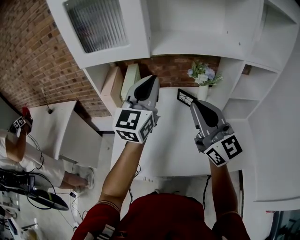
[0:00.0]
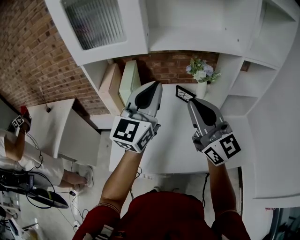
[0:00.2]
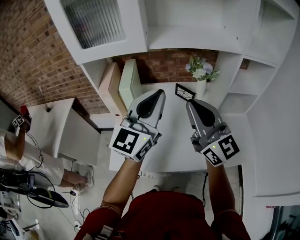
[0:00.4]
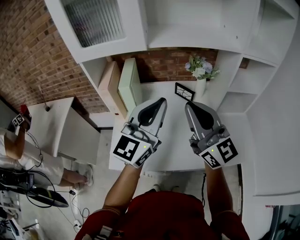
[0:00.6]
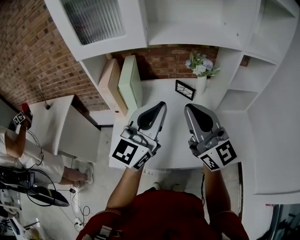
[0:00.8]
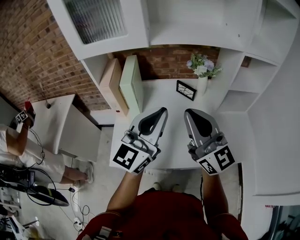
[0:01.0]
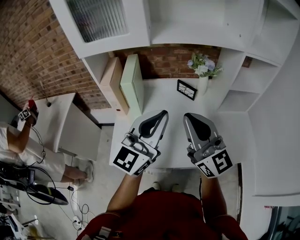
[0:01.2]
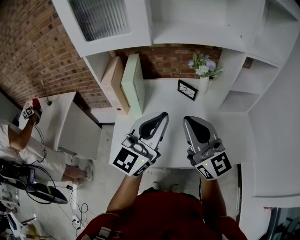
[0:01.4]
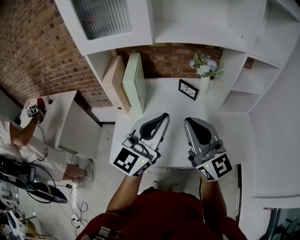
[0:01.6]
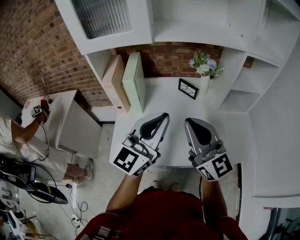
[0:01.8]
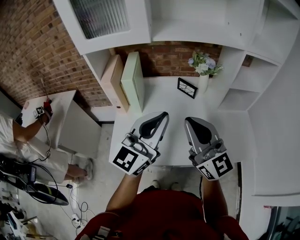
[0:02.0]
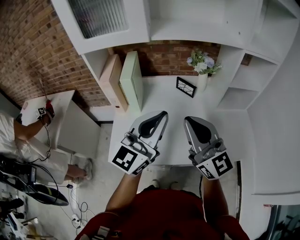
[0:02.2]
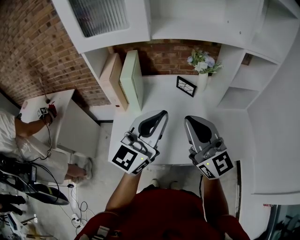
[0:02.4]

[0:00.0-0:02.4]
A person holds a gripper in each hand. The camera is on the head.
0:00.0 to 0:01.2: The left gripper goes about 15 cm backward and downward. Meanwhile the right gripper goes about 5 cm backward.
0:01.2 to 0:02.4: The grippers make only small movements.

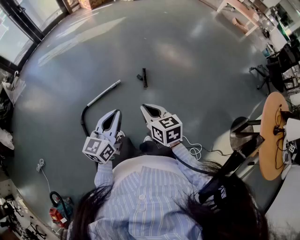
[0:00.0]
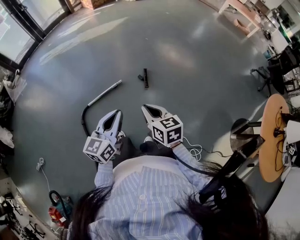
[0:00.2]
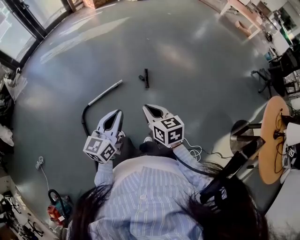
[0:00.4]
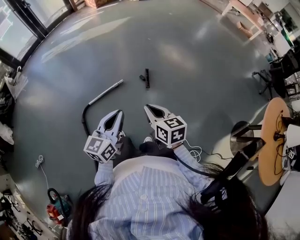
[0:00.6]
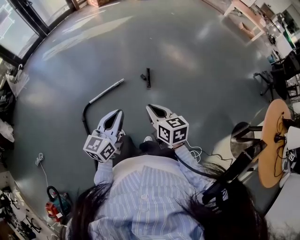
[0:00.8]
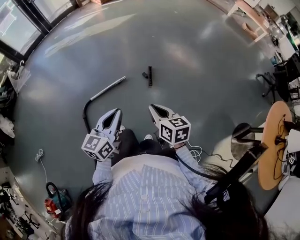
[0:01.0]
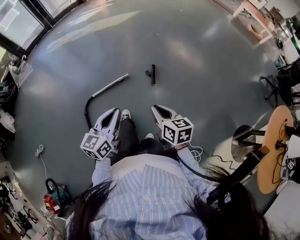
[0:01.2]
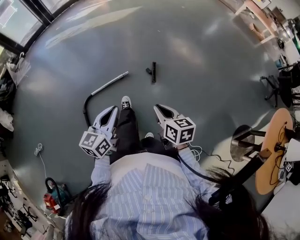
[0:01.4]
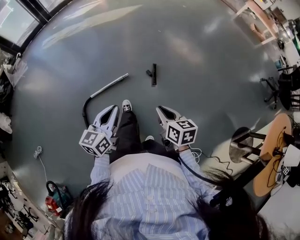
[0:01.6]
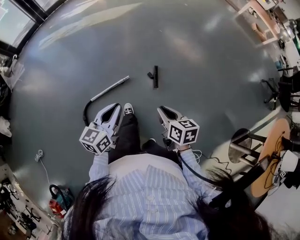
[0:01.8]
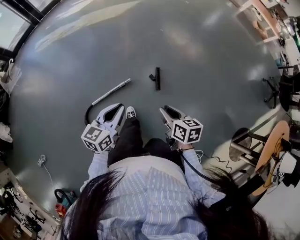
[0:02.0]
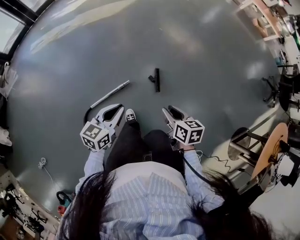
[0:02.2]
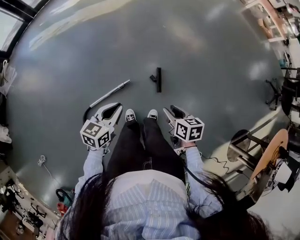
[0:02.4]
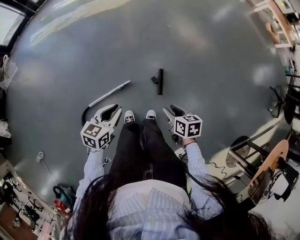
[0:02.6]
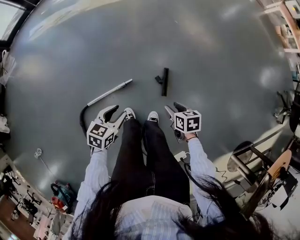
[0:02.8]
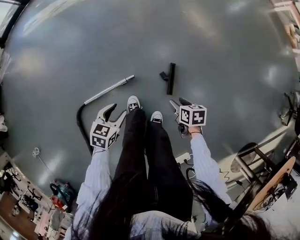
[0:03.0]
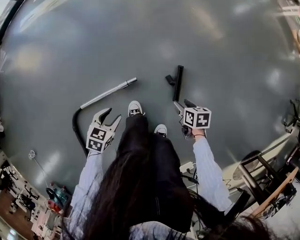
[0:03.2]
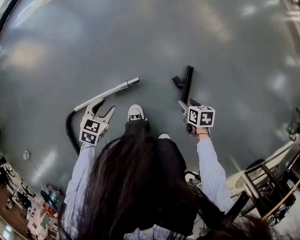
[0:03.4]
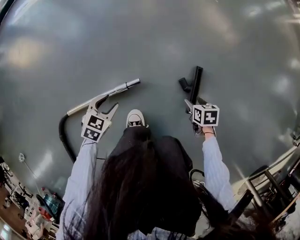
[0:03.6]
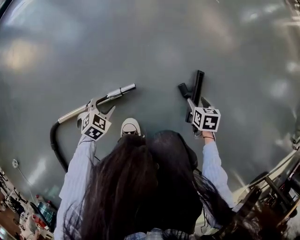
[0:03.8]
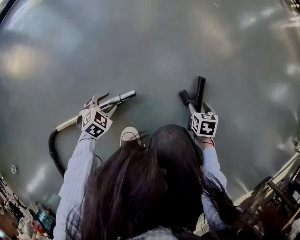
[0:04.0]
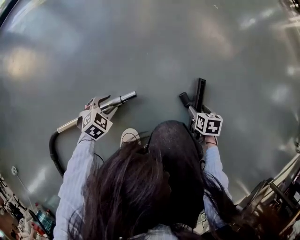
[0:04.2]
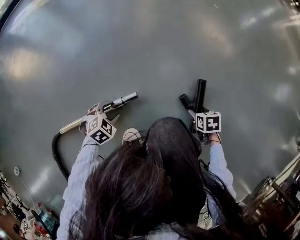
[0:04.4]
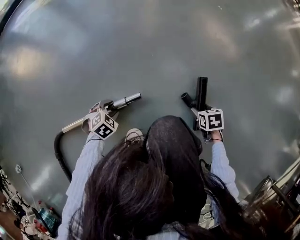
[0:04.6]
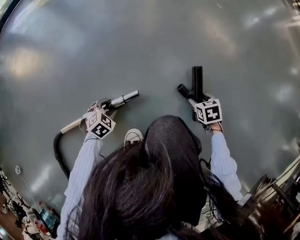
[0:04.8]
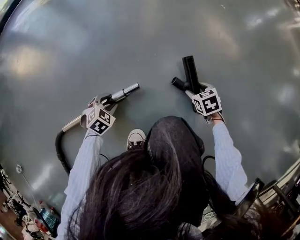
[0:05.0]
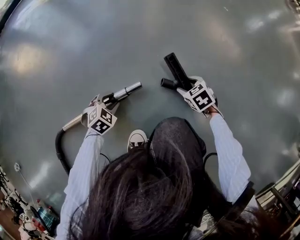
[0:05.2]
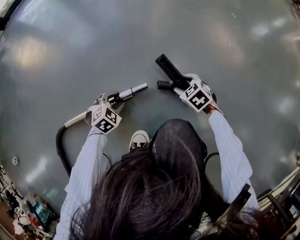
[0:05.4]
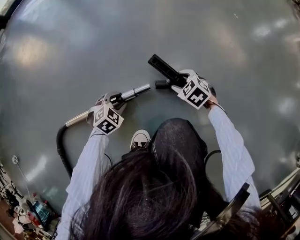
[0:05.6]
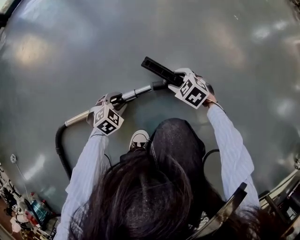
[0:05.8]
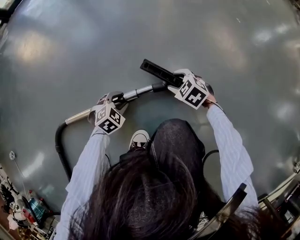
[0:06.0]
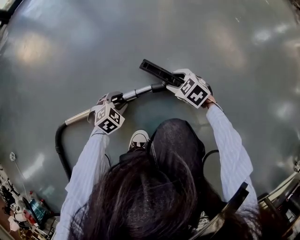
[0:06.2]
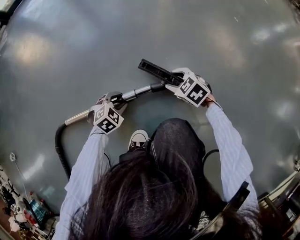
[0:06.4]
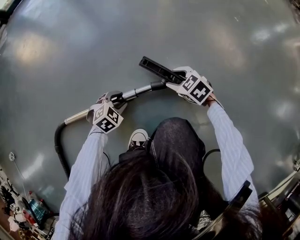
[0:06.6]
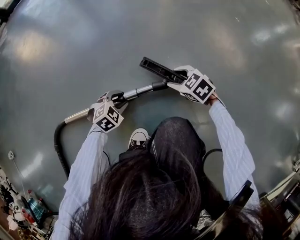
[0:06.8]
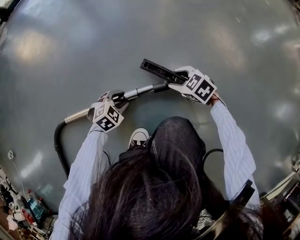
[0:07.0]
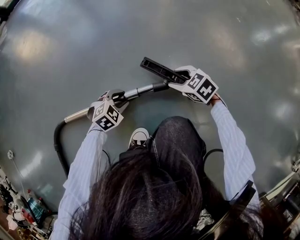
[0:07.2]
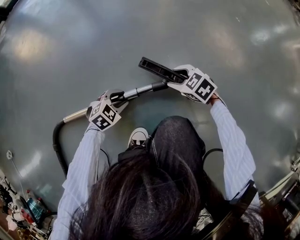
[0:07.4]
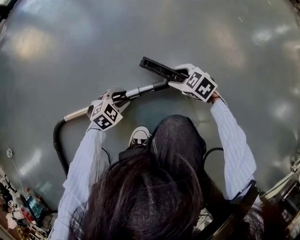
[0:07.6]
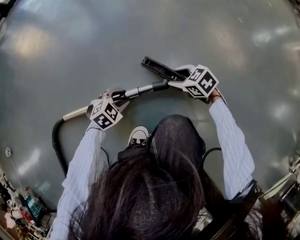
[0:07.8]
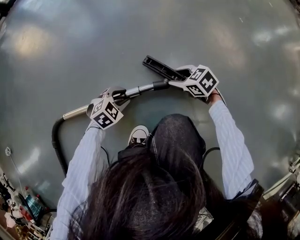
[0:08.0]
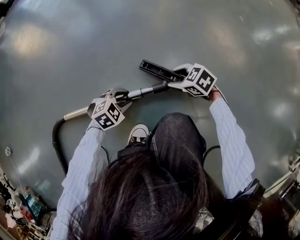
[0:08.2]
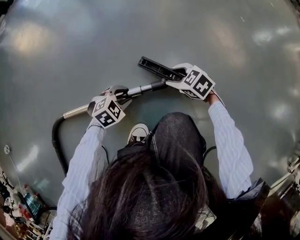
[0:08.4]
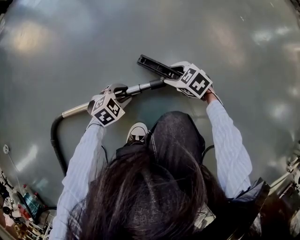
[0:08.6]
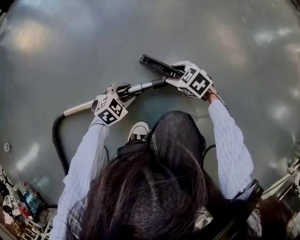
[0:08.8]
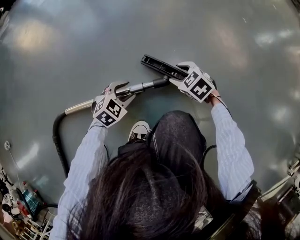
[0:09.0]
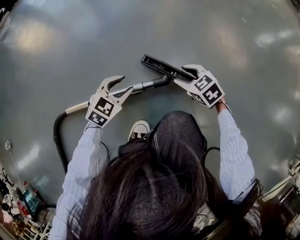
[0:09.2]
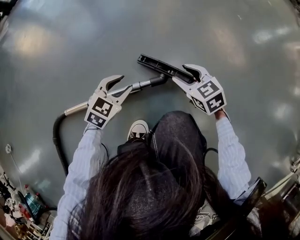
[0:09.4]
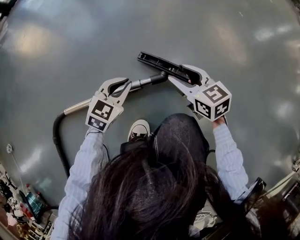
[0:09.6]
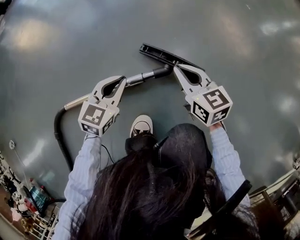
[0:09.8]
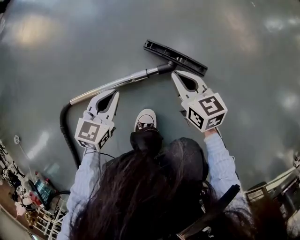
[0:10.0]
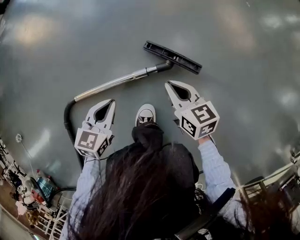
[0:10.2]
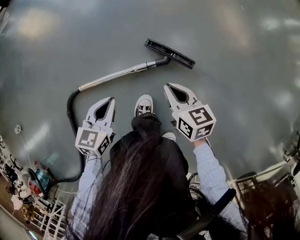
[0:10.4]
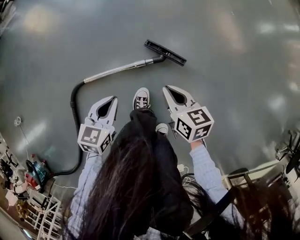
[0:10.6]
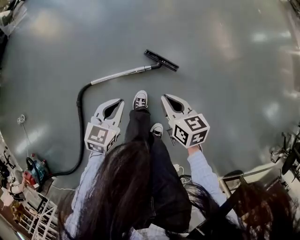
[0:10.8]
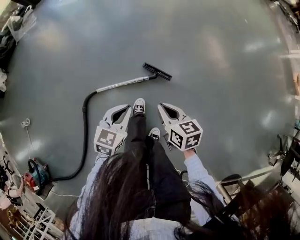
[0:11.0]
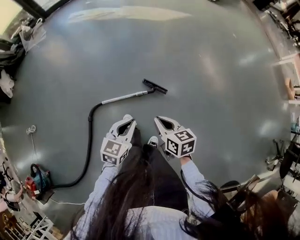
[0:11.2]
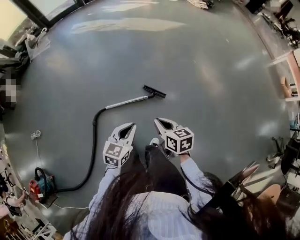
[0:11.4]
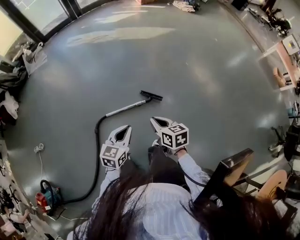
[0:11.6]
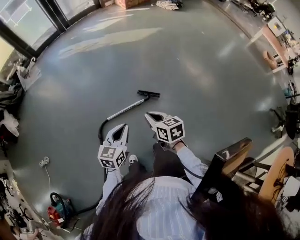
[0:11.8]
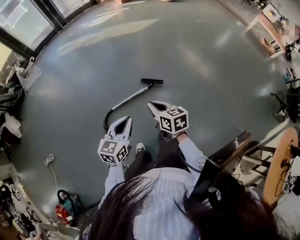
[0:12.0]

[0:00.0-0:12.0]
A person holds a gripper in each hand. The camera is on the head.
0:00.0 to 0:01.6: The grippers both shift forward and downward by some 10 cm.
0:01.6 to 0:03.0: The two grippers go approximately 50 cm downward and forward. The left gripper angles its fingers downward, by roughly 40 degrees, and opens up; the right gripper turns by approximately 30 degrees, and opens.
0:03.0 to 0:04.4: The grippers both shift downward by some 50 cm. The left gripper turns by approximately 40 degrees.
0:04.4 to 0:06.0: The left gripper moves some 5 cm, while the right gripper moves roughly 25 cm, and rolls counterclockwise, seen from behind, by some 60 degrees.
0:06.0 to 0:07.6: There are only small adjustments of the grippers.
0:07.6 to 0:09.0: The grippers stay close to where they were, moving slightly.
0:09.0 to 0:10.4: The right gripper is displaced upward and backward by some 25 cm, rolls clockwise, seen from behind, by about 40 degrees, and closes its fingers. Meanwhile the left gripper is displaced upward by approximately 25 cm, swivels some 40 degrees, and closes its fingers.
0:10.4 to 0:12.0: Both grippers move upward and backward, about 70 cm. The left gripper turns by roughly 20 degrees.

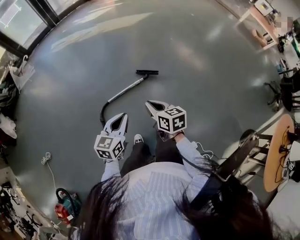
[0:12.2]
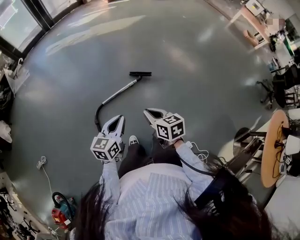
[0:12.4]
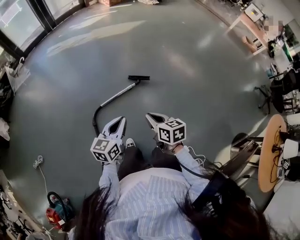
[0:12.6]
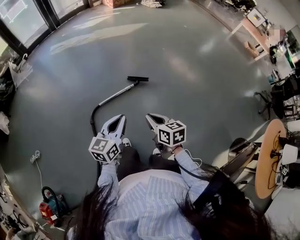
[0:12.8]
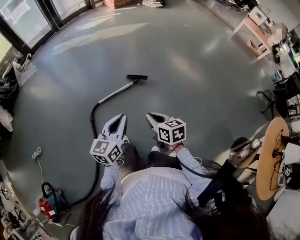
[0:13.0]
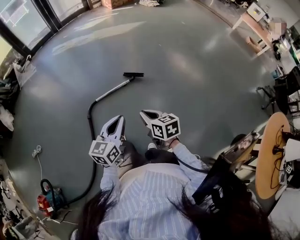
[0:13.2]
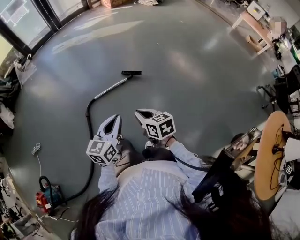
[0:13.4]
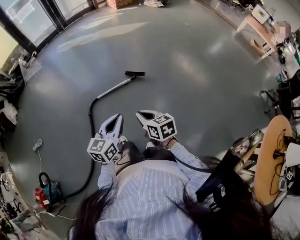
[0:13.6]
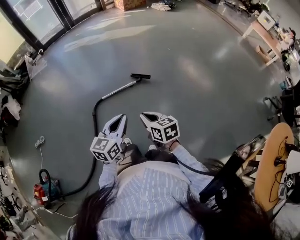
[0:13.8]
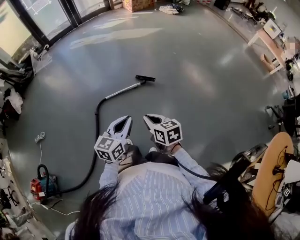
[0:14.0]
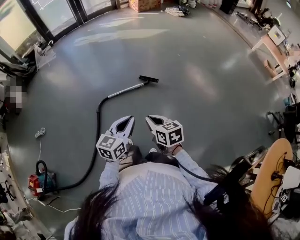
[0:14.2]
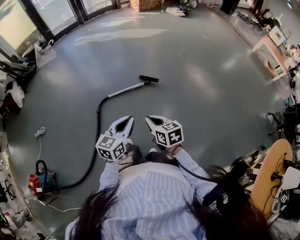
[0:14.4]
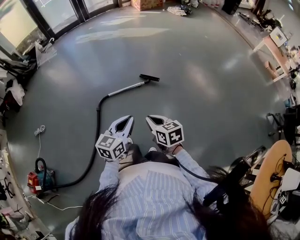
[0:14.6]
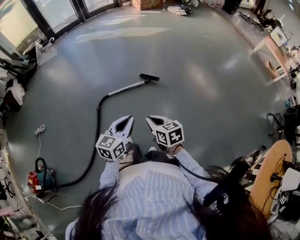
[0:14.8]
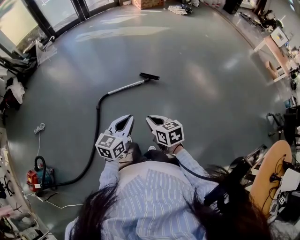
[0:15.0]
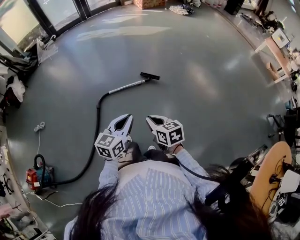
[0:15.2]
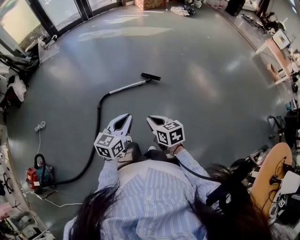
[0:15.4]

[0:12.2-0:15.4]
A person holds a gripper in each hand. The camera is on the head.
0:12.2 to 0:13.8: Both grippers move backward and to the right, about 25 cm.
0:13.8 to 0:15.4: The grippers stay close to where they were, moving slightly.

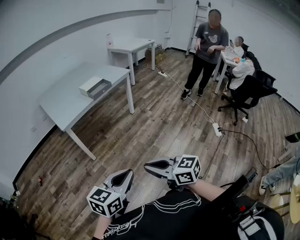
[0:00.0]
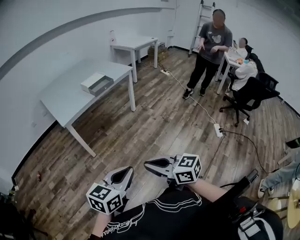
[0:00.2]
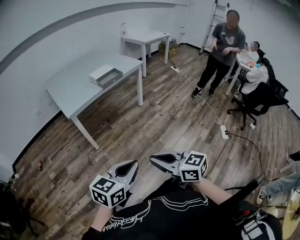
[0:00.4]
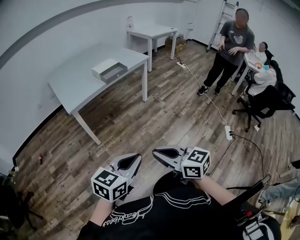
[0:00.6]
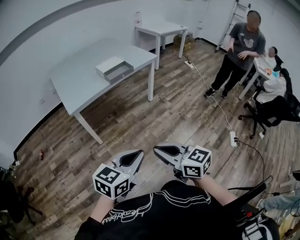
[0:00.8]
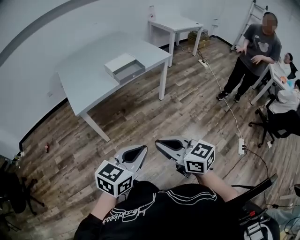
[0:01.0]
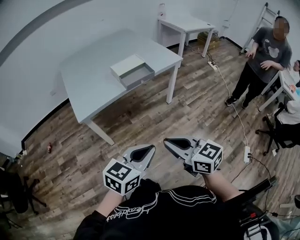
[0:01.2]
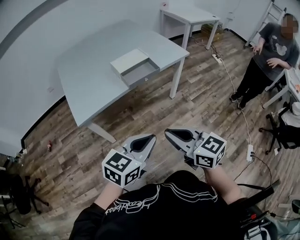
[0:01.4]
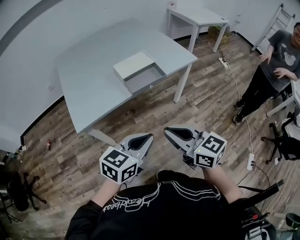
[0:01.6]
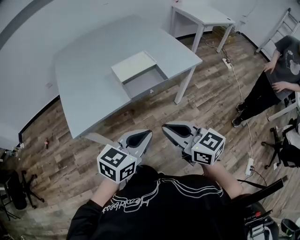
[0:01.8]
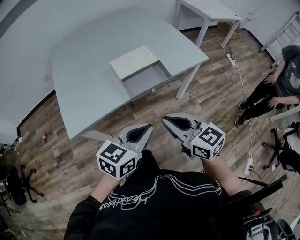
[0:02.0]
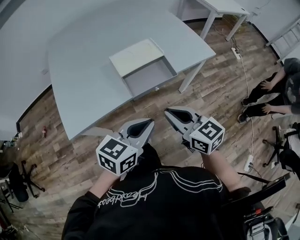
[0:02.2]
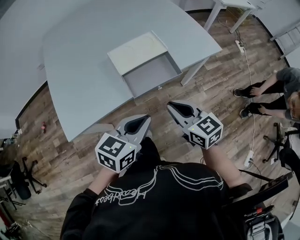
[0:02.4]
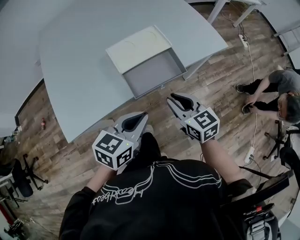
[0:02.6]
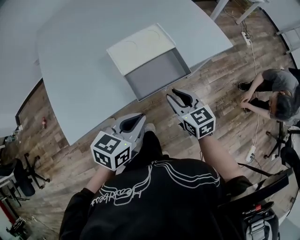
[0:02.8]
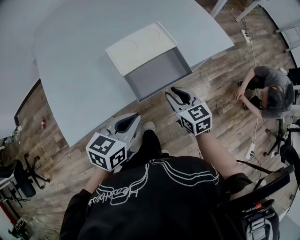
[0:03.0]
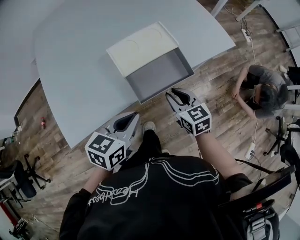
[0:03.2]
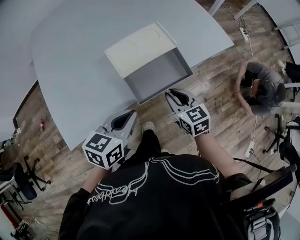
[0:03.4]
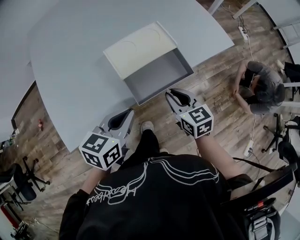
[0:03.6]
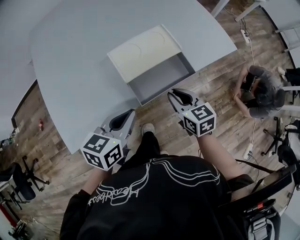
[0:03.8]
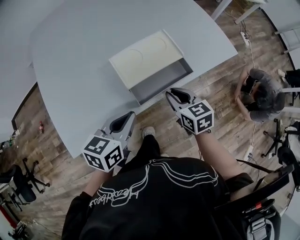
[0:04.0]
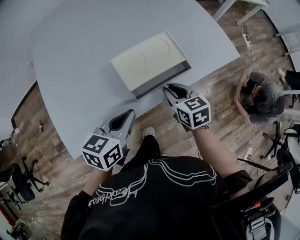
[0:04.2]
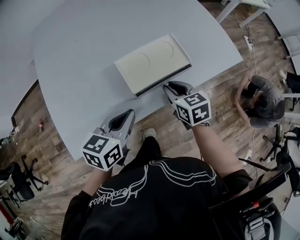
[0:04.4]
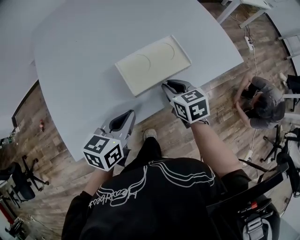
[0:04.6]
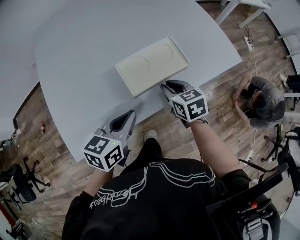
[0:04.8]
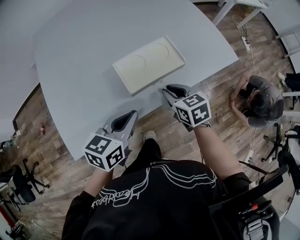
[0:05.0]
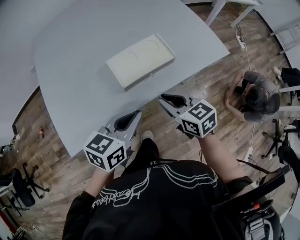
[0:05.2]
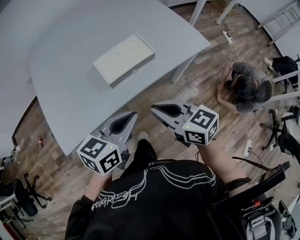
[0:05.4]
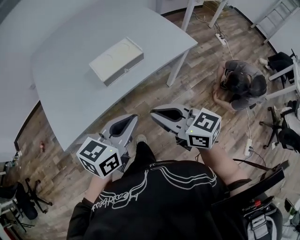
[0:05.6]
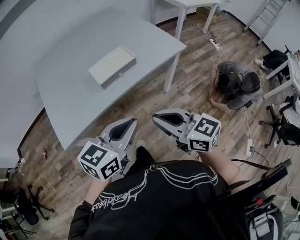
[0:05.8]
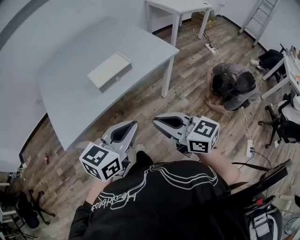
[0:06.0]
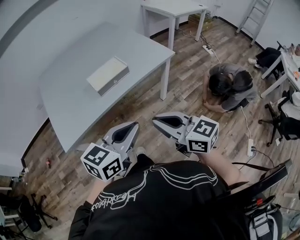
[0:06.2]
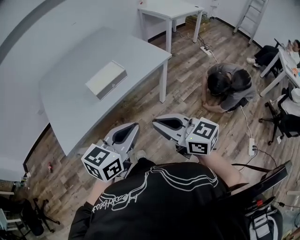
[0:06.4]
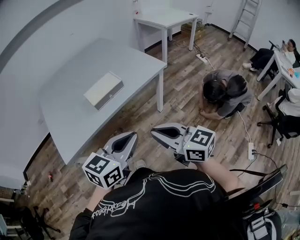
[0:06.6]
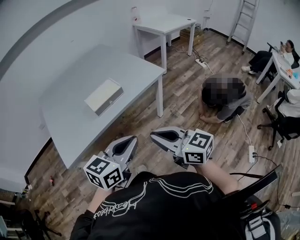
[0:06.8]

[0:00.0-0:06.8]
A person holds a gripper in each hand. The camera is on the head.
0:00.0 to 0:01.4: The two grippers travel together, forward, approximately 50 cm.
0:01.4 to 0:02.8: Both grippers move forward and downward, some 40 cm. The right gripper opens its fingers.
0:02.8 to 0:04.0: The left gripper heads forward and to the left, covering about 10 cm. Meanwhile the right gripper shifts about 5 cm forward.
0:04.0 to 0:05.4: The left gripper heads upward, to the right and backward, covering some 15 cm. The right gripper goes about 20 cm upward and backward, and rotates approximately 20 degrees.
0:05.4 to 0:06.8: Both grippers move backward, to the right and upward, about 25 cm.
